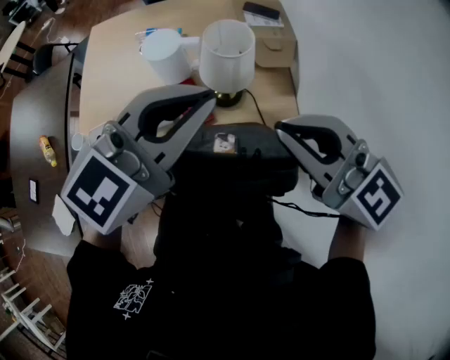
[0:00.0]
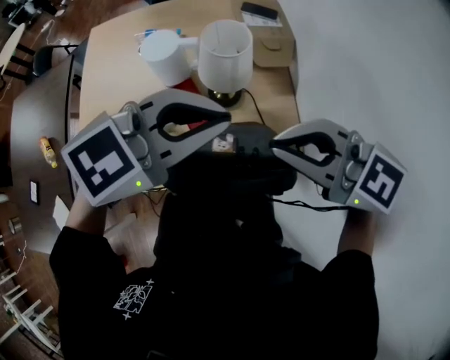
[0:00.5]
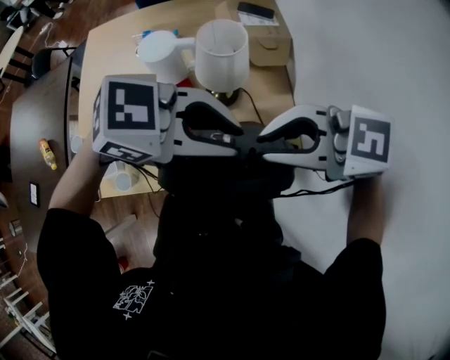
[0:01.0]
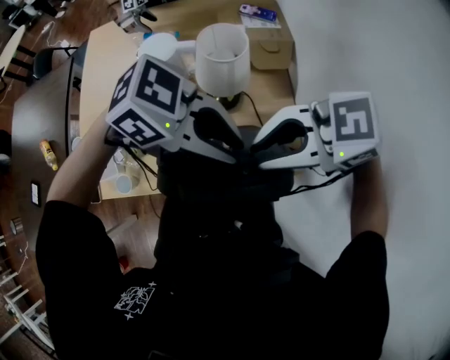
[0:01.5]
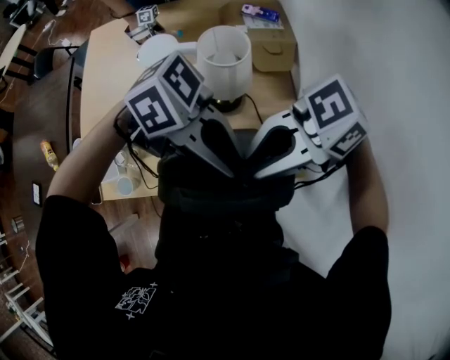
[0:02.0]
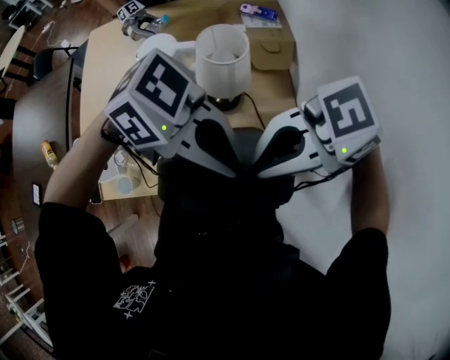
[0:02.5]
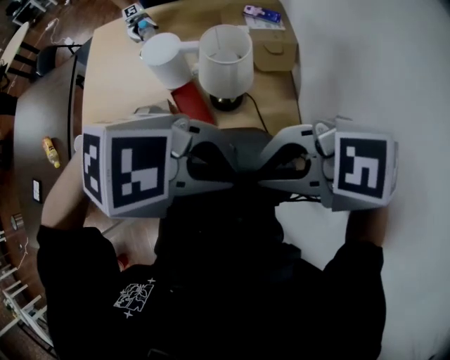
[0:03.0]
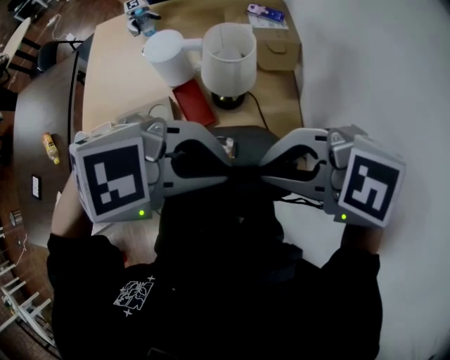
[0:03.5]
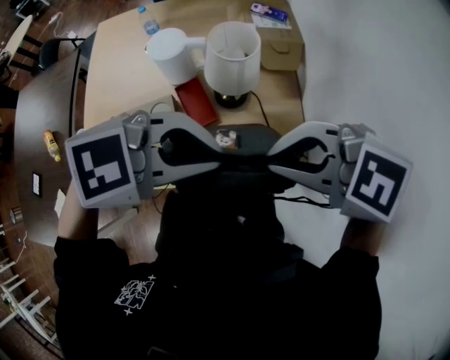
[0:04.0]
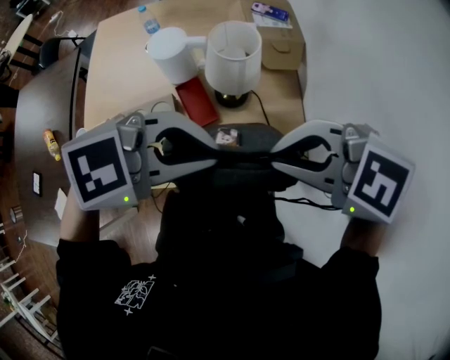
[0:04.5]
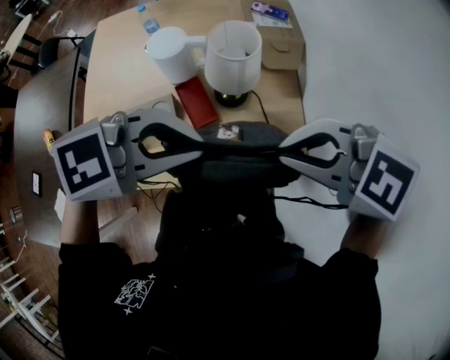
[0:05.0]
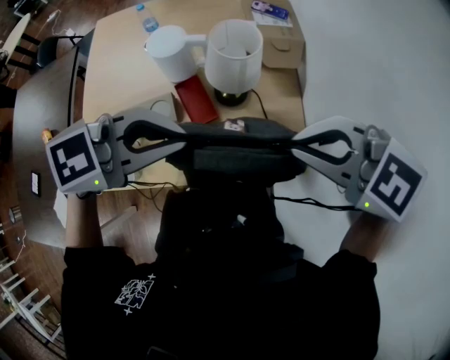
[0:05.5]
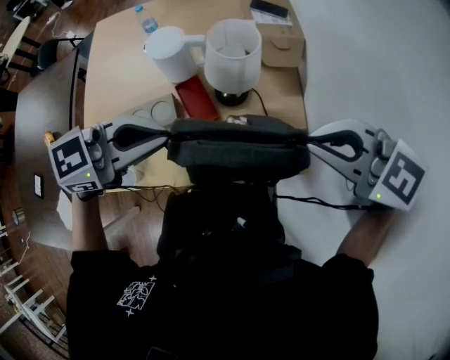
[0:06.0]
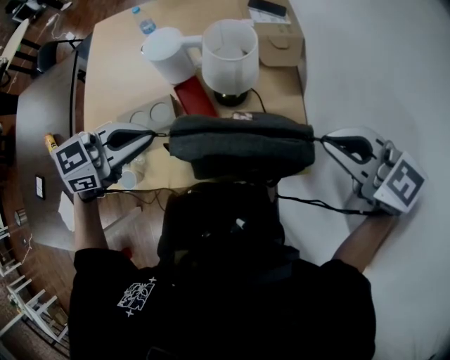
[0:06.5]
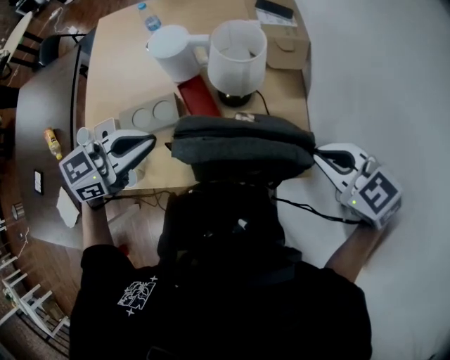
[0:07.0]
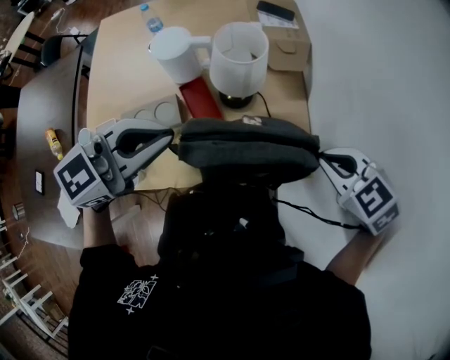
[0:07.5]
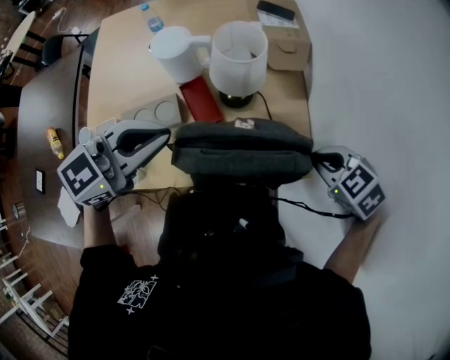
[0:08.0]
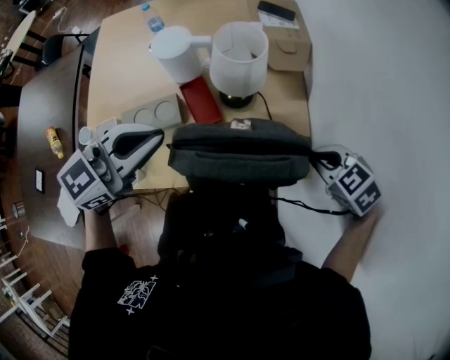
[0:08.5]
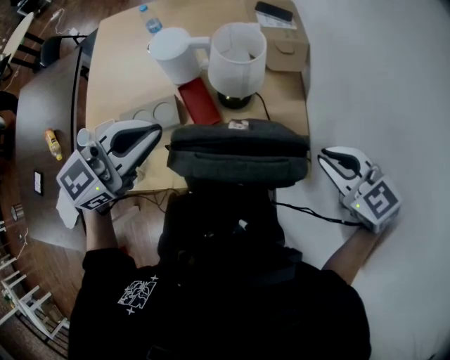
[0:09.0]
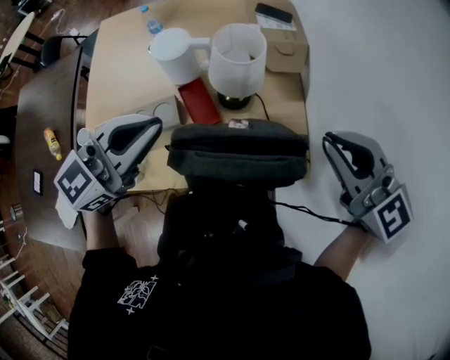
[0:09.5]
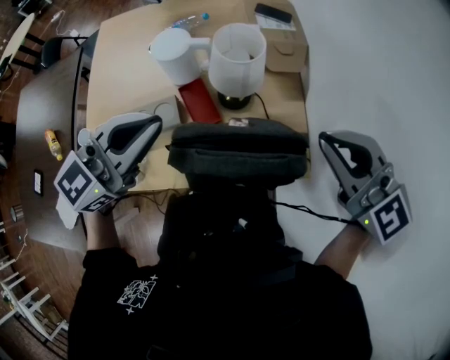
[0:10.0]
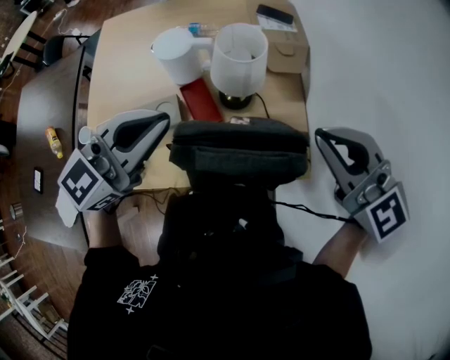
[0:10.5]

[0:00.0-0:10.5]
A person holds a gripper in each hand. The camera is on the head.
0:00.0 to 0:02.0: The right gripper heads downward, covering some 5 cm, swivels about 70 degrees, and opens its fingers. The left gripper changes place by approximately 15 cm, rotates about 90 degrees, and opens up.
0:02.0 to 0:04.0: The right gripper swivels roughly 40 degrees, and closes its fingers, while the left gripper changes its angle by roughly 50 degrees, and closes its fingers.
0:04.0 to 0:06.5: The right gripper ends up some 15 cm from where it was, and rotates about 30 degrees; the left gripper shifts by some 20 cm, and turns by about 40 degrees.
0:06.5 to 0:08.5: The right gripper heads downward, covering some 15 cm, and rotates roughly 30 degrees.
0:08.5 to 0:10.5: The right gripper shifts some 20 cm upward, and tilts its fingers roughly 50 degrees upward; the left gripper ends up some 5 cm from where it was.

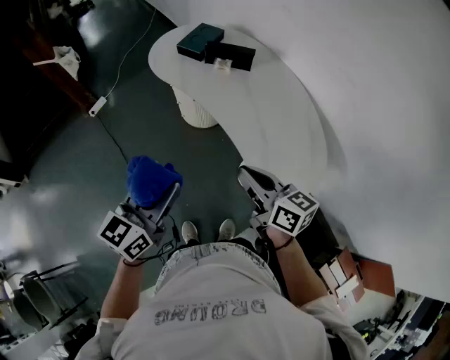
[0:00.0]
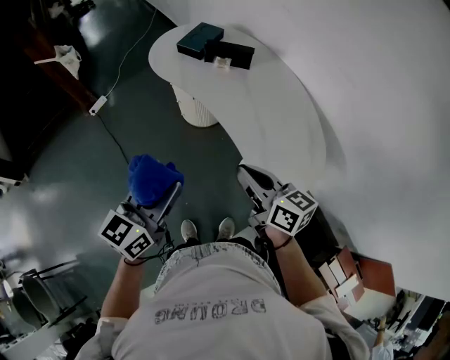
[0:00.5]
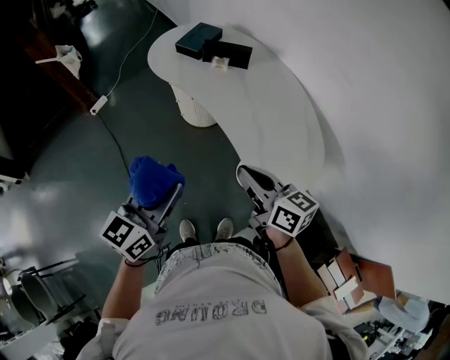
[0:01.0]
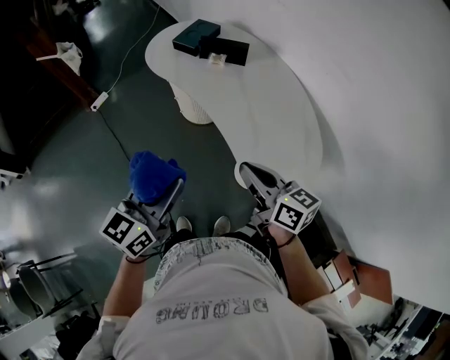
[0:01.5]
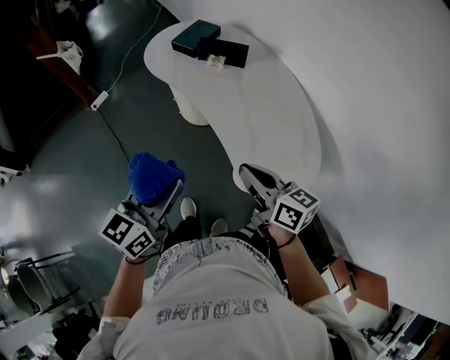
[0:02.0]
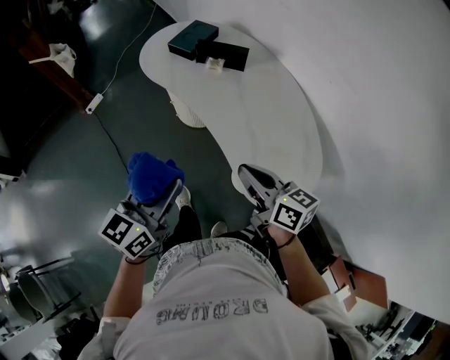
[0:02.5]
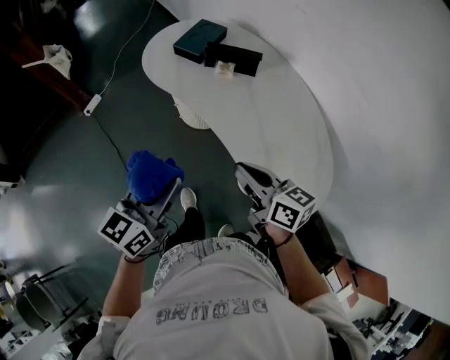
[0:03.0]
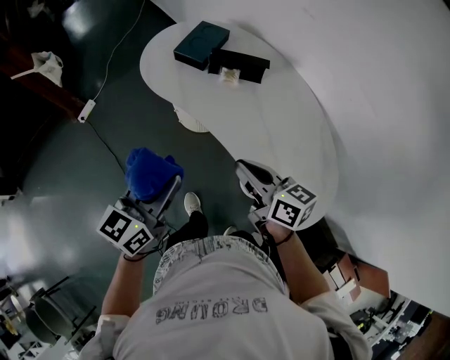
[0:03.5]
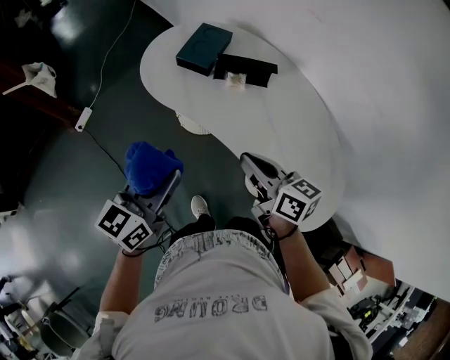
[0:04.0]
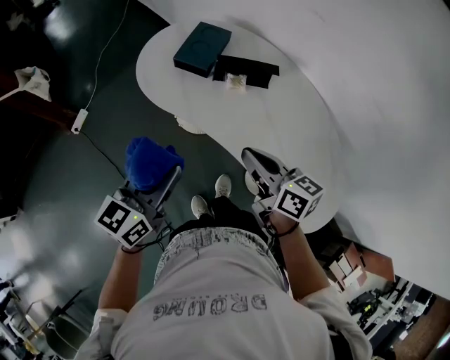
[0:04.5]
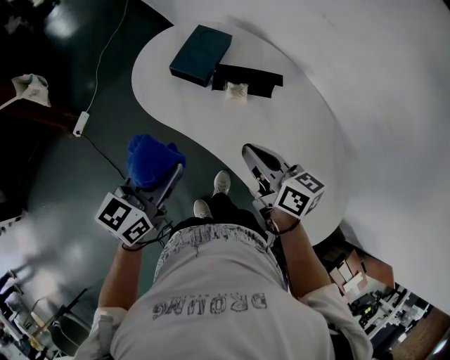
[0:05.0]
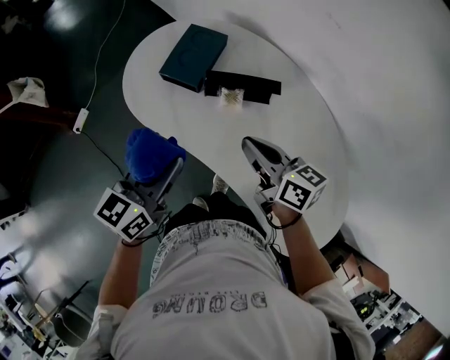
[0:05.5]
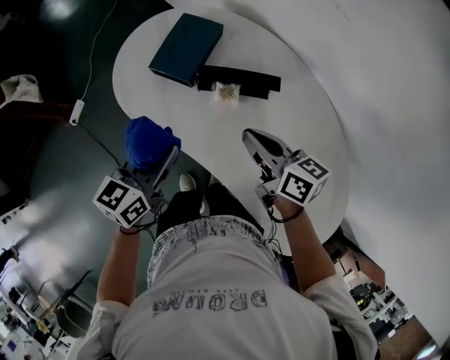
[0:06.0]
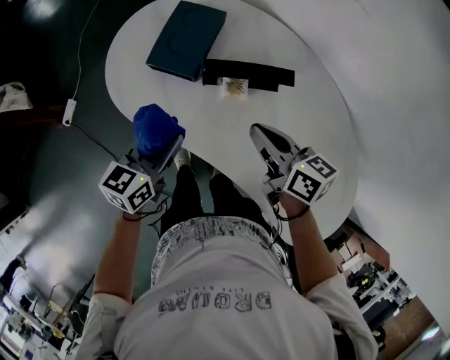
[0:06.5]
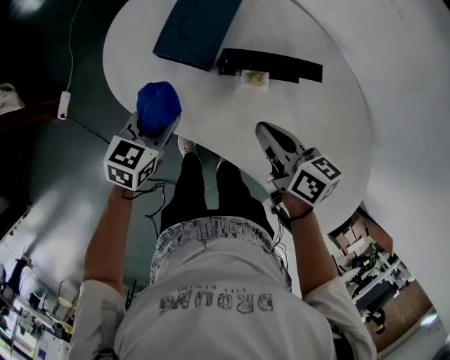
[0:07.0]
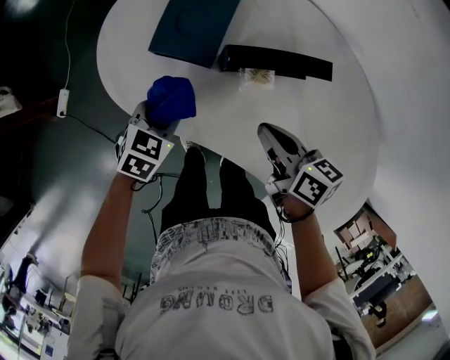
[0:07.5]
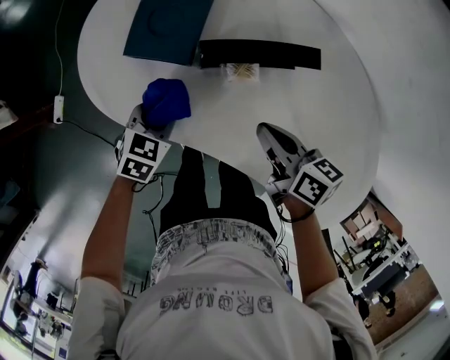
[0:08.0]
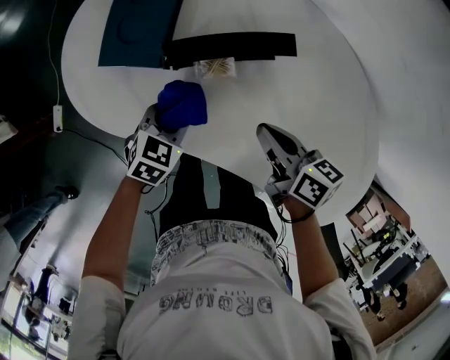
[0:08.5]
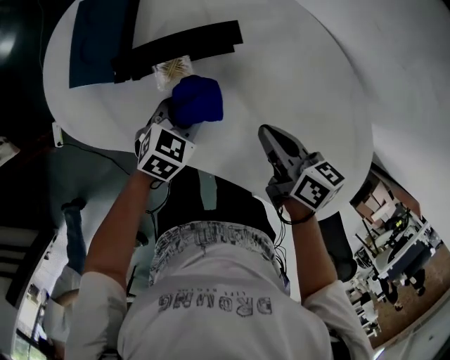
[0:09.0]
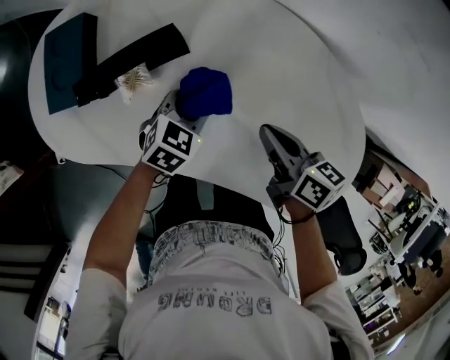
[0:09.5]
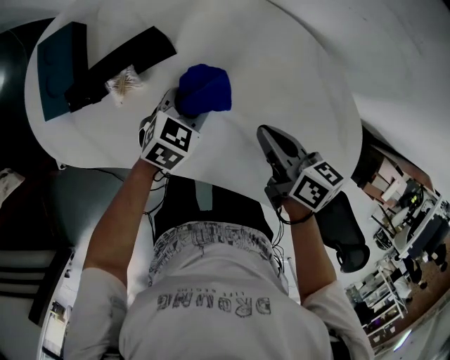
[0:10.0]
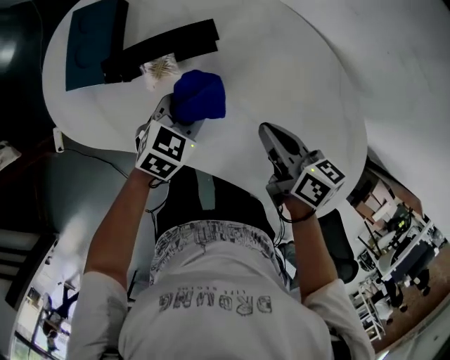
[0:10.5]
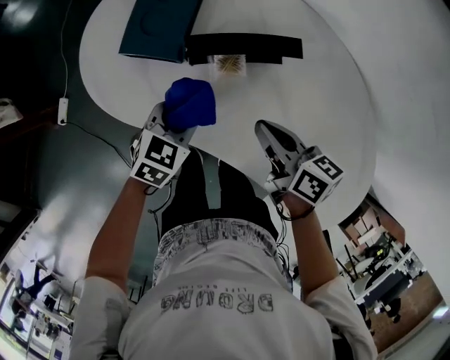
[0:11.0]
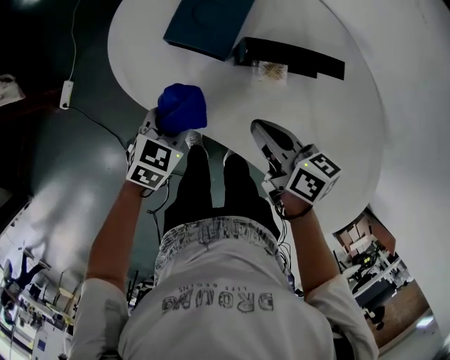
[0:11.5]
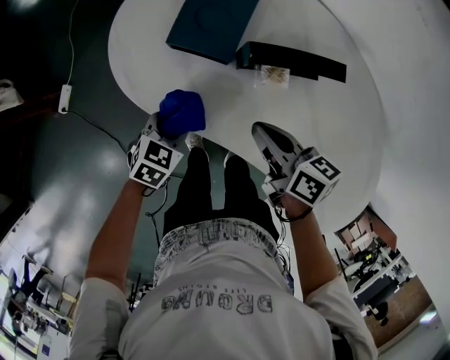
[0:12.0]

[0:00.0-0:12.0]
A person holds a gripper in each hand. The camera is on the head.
0:00.0 to 0:02.0: The grippers both shift to the right by some 5 cm.
0:02.0 to 0:04.0: Both grippers travel together forward and to the left, roughly 30 cm.
0:04.0 to 0:06.0: The left gripper heads forward and downward, covering about 25 cm; the right gripper heads forward, covering some 20 cm.
0:06.0 to 0:08.0: The right gripper shifts some 10 cm downward, and rotates about 20 degrees. Meanwhile the left gripper moves downward and forward, roughly 25 cm, and points its fingers some 30 degrees further downward.
0:08.0 to 0:10.0: The grippers both shift to the right by some 30 cm. The left gripper changes its angle by approximately 30 degrees.
0:10.0 to 0:12.0: The right gripper ends up about 30 cm from where it was, and rotates roughly 30 degrees. Meanwhile the left gripper moves about 40 cm, and swivels approximately 30 degrees.

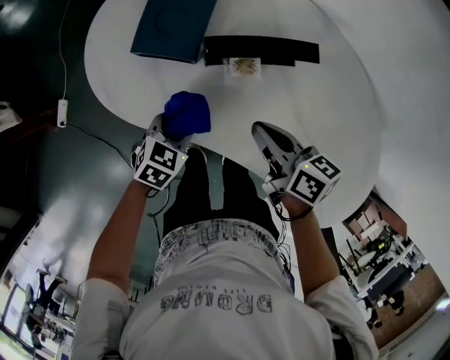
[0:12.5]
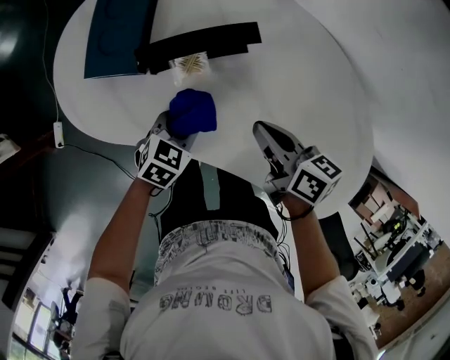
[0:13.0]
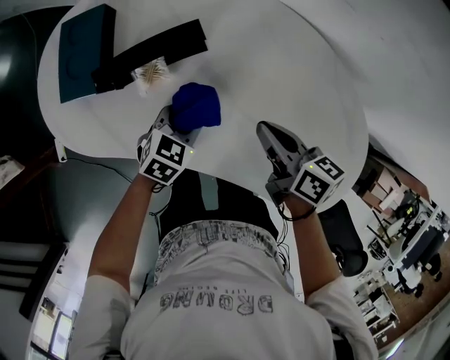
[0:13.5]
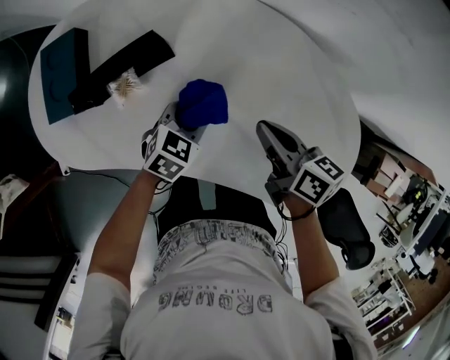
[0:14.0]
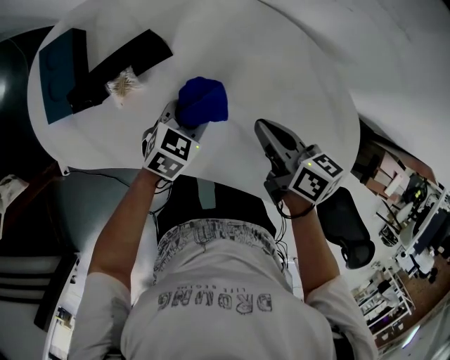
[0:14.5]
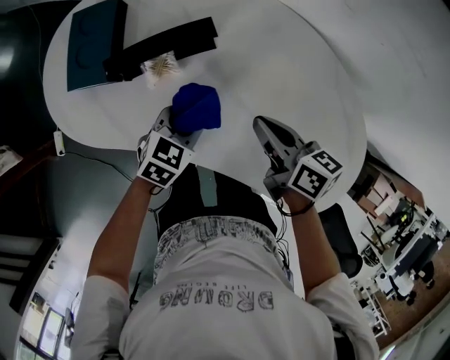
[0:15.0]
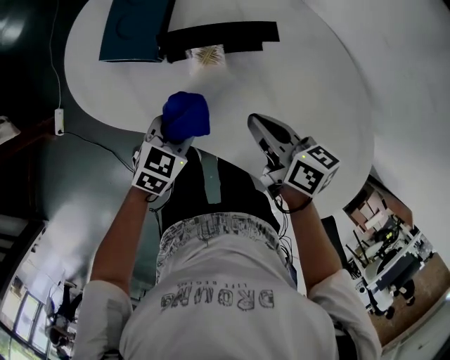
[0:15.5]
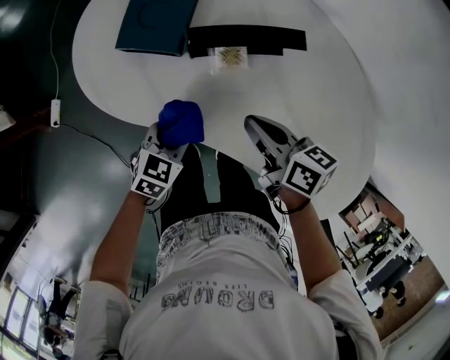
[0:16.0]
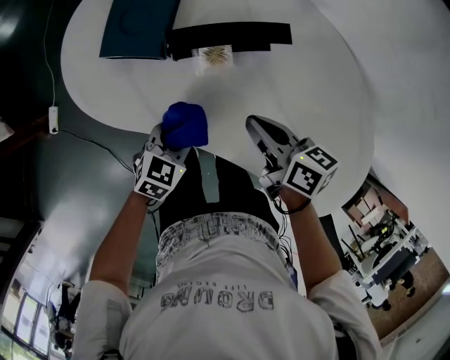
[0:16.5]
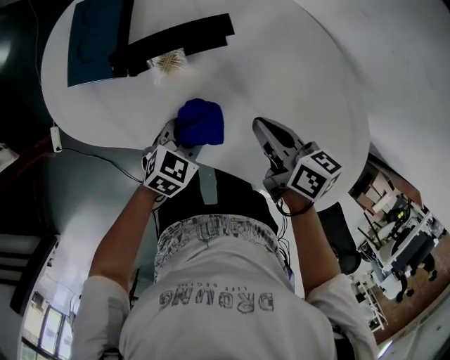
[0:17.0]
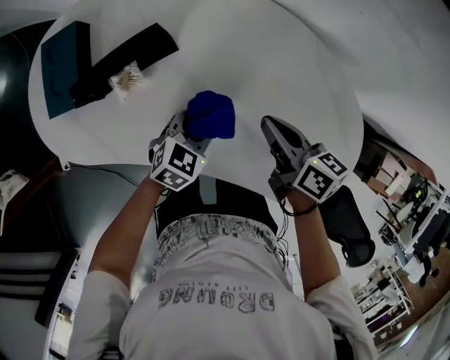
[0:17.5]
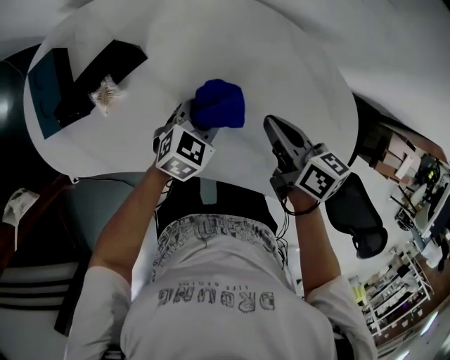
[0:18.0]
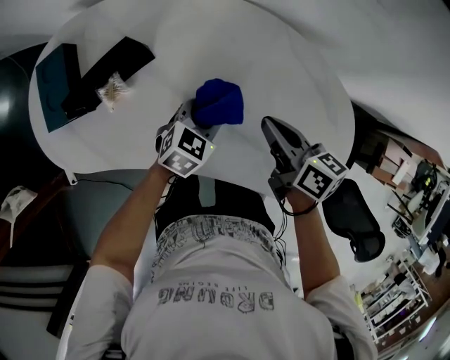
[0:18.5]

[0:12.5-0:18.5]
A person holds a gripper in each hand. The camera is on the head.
0:12.5 to 0:14.5: Both grippers travel together to the right, about 25 cm. The left gripper changes its angle by roughly 20 degrees. The right gripper swivels roughly 20 degrees.
0:14.5 to 0:16.5: Both grippers move to the left, about 20 cm. The right gripper rotates about 20 degrees.
0:16.5 to 0:18.5: The left gripper shifts by about 30 cm, and turns by about 30 degrees; the right gripper shifts by some 25 cm, and swivels approximately 30 degrees.
